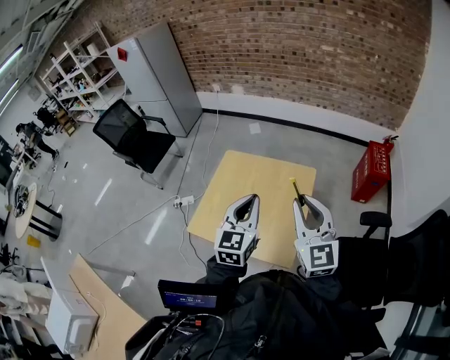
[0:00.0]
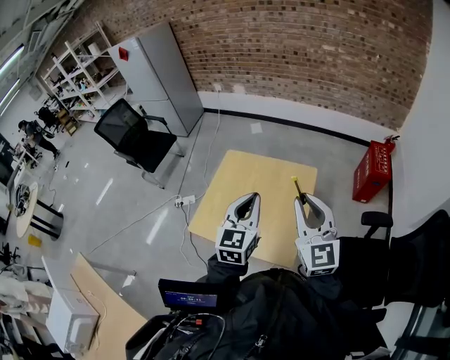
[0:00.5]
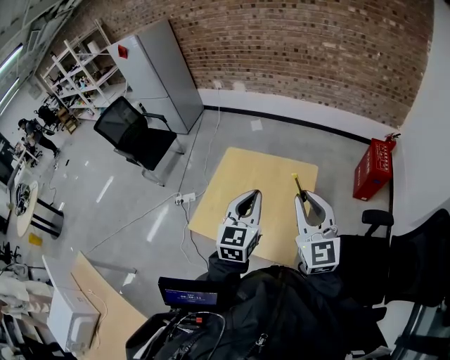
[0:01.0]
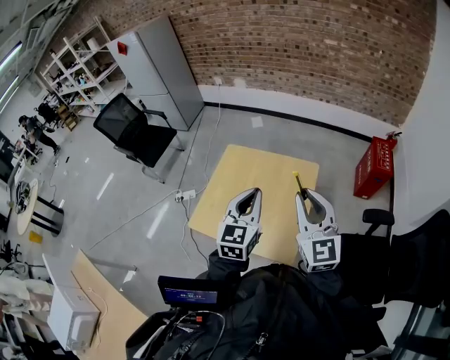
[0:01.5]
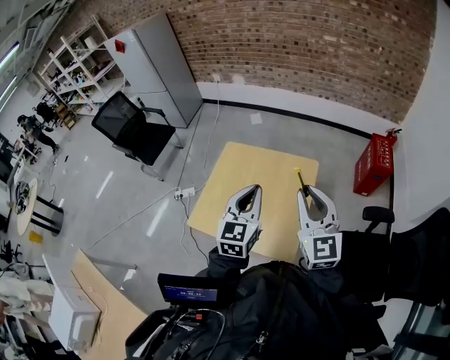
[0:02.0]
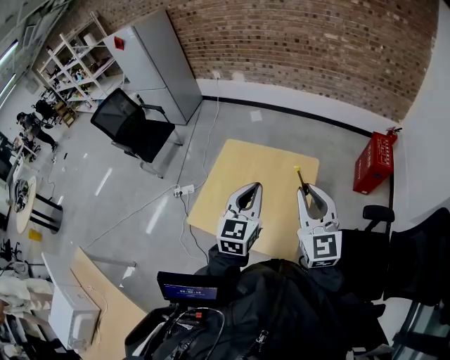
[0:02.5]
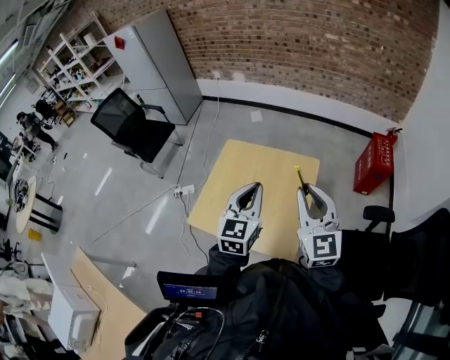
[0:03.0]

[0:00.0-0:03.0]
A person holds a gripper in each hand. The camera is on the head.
0:00.0 to 0:01.5: Neither gripper changes place.
0:01.5 to 0:03.0: The grippers move only a little.

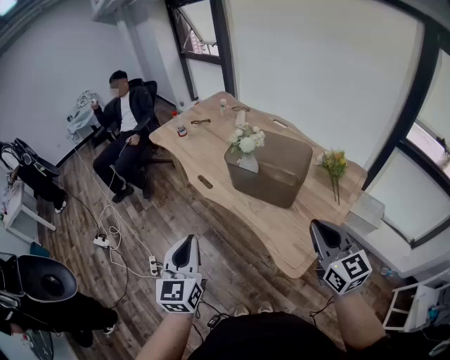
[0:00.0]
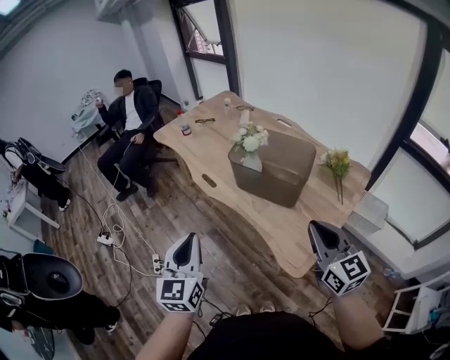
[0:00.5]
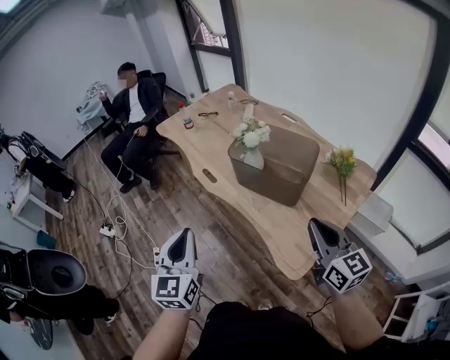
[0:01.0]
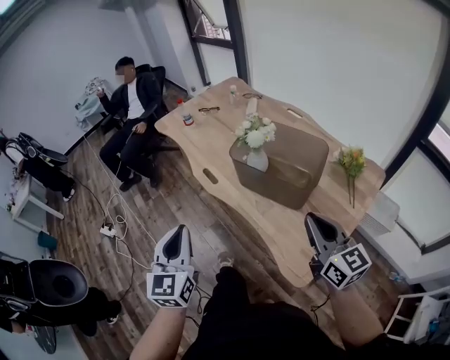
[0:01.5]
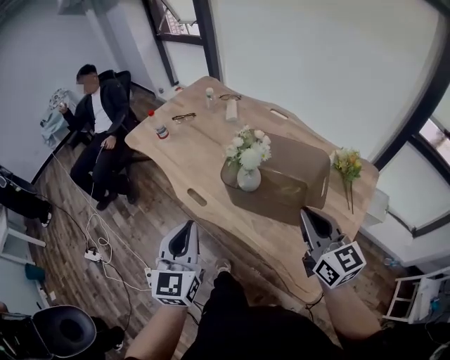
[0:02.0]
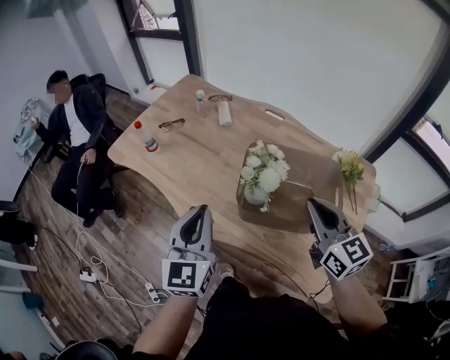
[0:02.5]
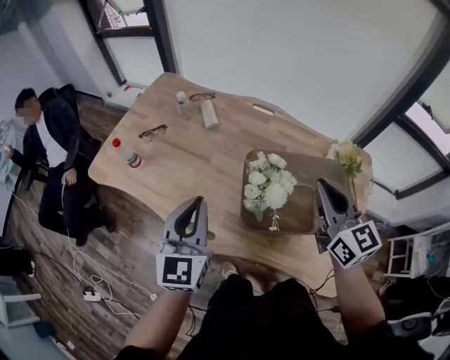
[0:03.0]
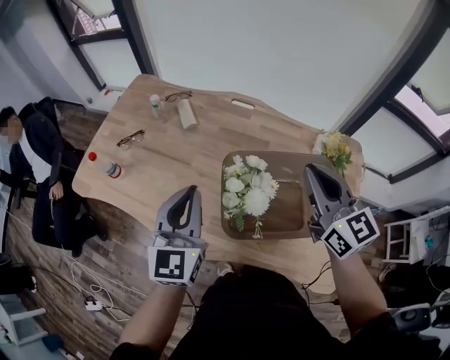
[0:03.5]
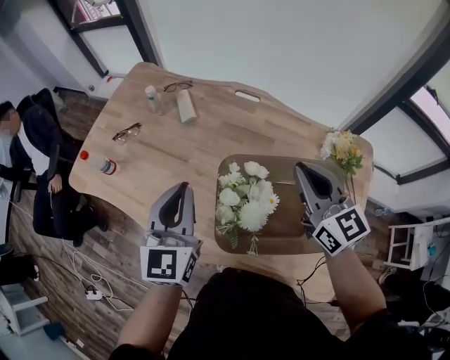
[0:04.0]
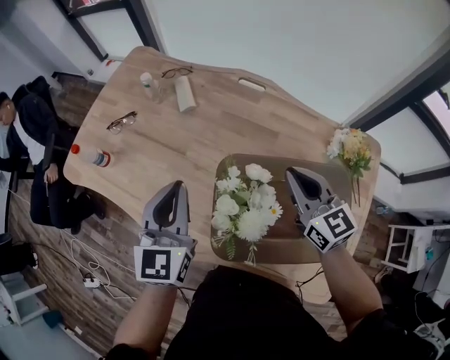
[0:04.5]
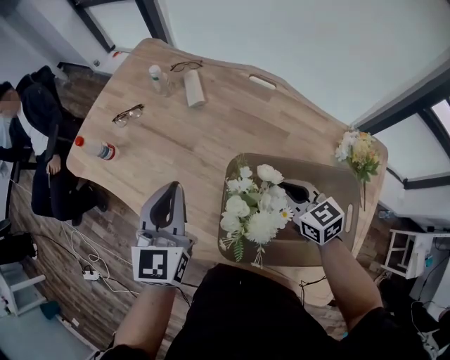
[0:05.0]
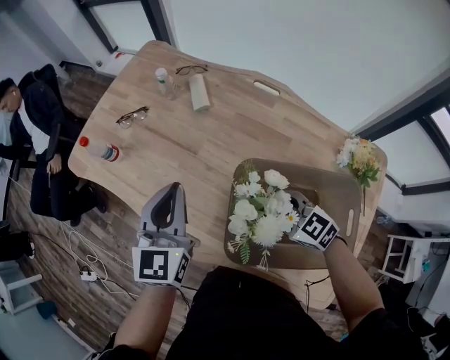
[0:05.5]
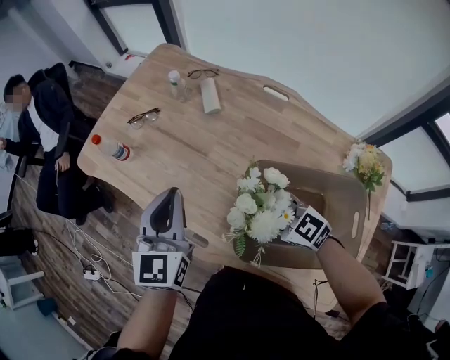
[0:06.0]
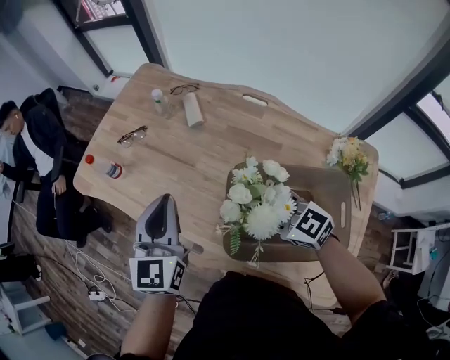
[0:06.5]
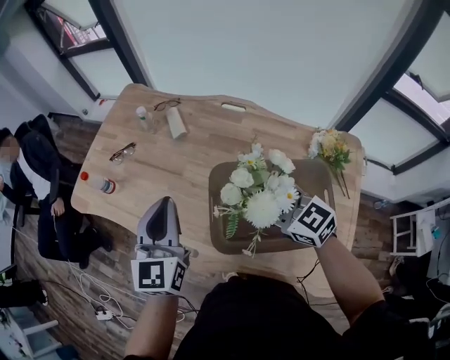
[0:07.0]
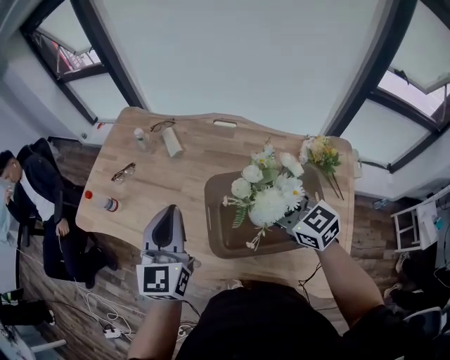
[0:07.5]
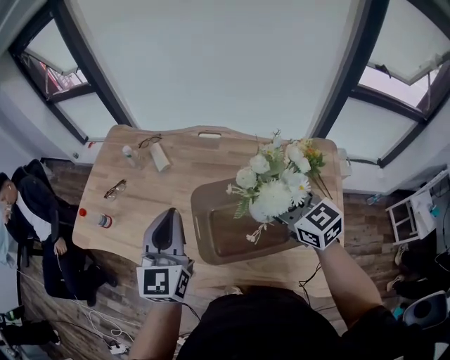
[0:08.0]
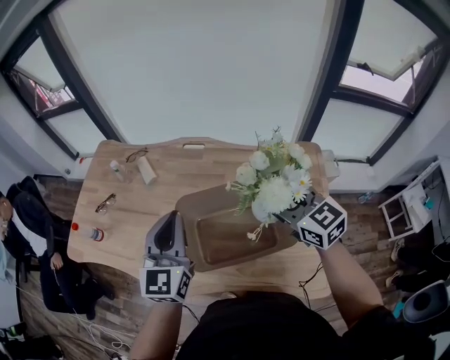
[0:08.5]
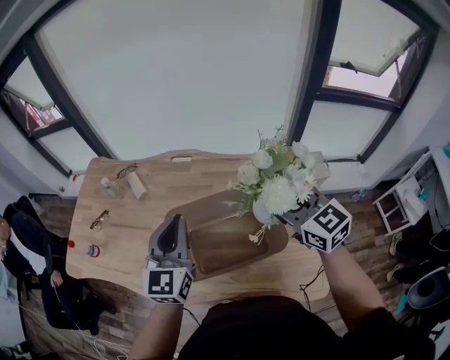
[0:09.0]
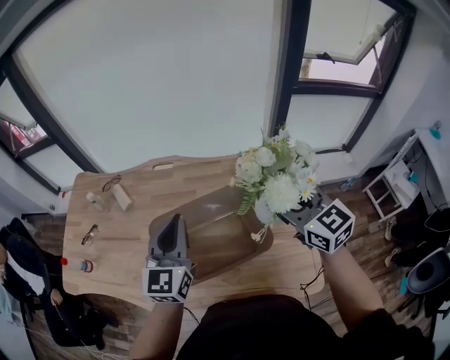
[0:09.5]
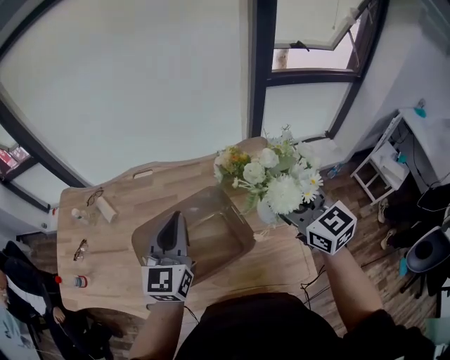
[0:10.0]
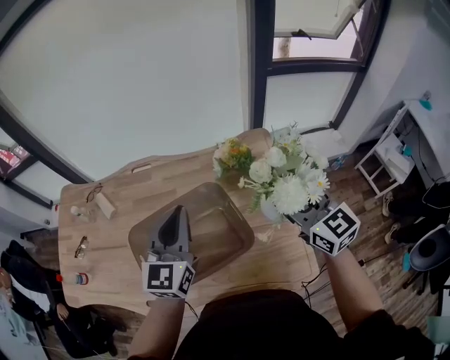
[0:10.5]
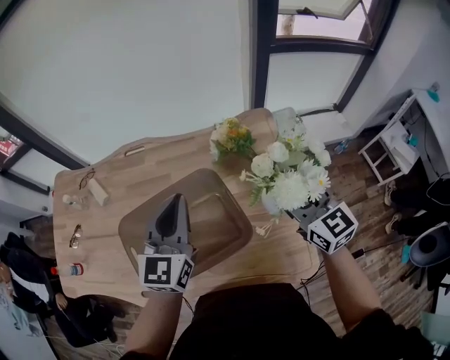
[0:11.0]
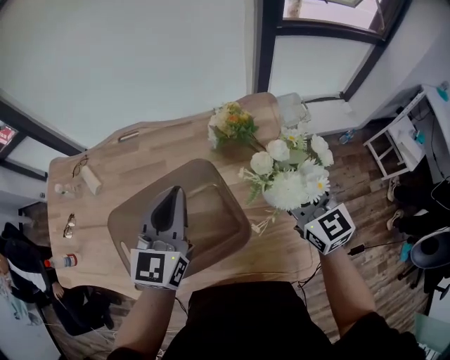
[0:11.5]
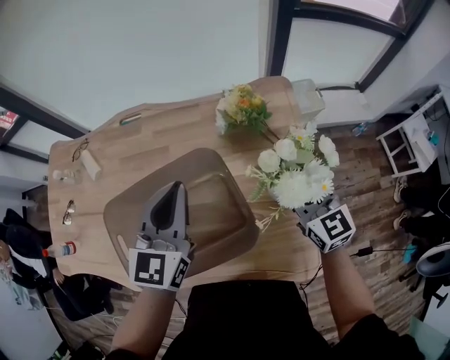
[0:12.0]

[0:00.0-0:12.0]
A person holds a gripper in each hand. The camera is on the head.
0:00.0 to 0:02.0: Both grippers move forward, about 20 cm.
0:02.0 to 0:04.0: The grippers both shift forward by approximately 30 cm.
0:04.0 to 0:06.0: The right gripper is displaced downward by approximately 15 cm, swivels some 50 degrees, and opens up. Meanwhile the left gripper shifts by approximately 5 cm.
0:06.0 to 0:08.0: The left gripper shifts by about 15 cm, and changes its angle by about 20 degrees; the right gripper moves upward, approximately 15 cm, and turns by some 40 degrees.
0:08.0 to 0:10.0: The grippers both shift to the right by approximately 20 cm. The left gripper changes its angle by some 20 degrees; the right gripper changes its angle by approximately 20 degrees.
0:10.0 to 0:12.0: The left gripper goes approximately 10 cm downward. The right gripper heads downward, covering some 20 cm.

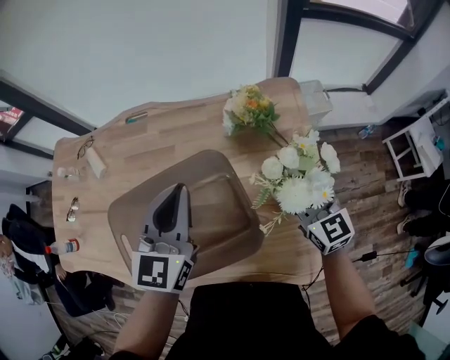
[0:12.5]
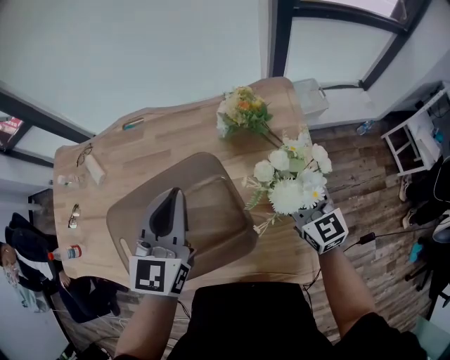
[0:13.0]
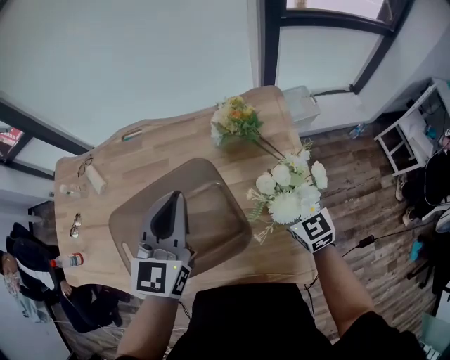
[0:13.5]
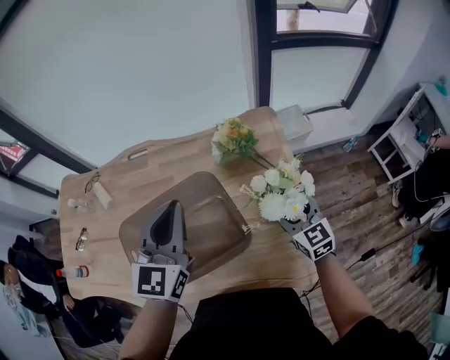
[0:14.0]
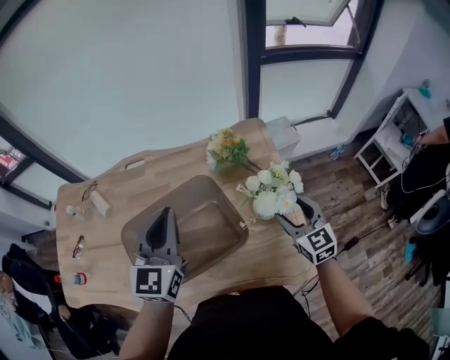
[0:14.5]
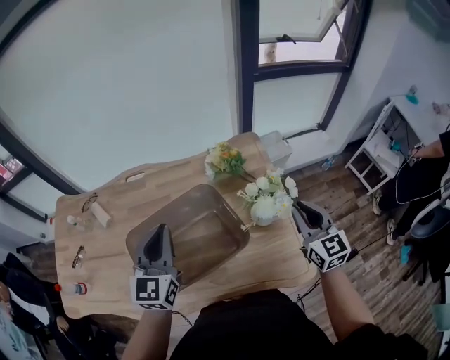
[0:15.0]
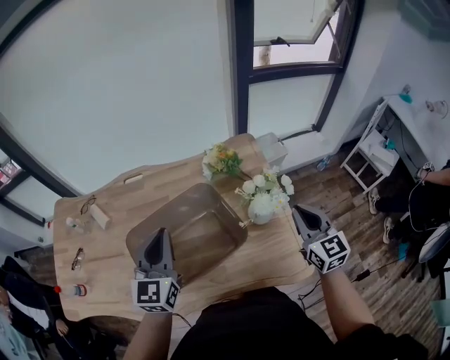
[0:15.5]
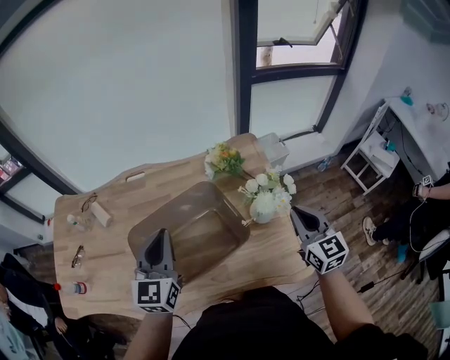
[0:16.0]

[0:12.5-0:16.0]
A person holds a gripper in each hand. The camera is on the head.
0:12.5 to 0:14.5: The left gripper is displaced upward by roughly 5 cm; the right gripper goes approximately 5 cm backward.
0:14.5 to 0:16.0: The right gripper moves upward, roughly 10 cm, and closes up. The left gripper moves to the left, about 5 cm.

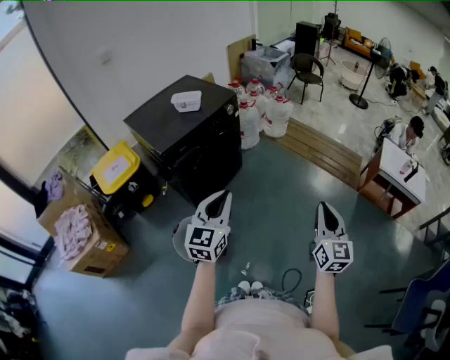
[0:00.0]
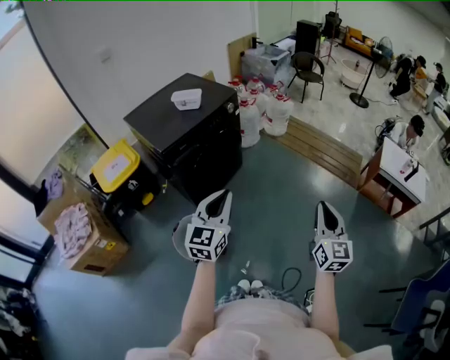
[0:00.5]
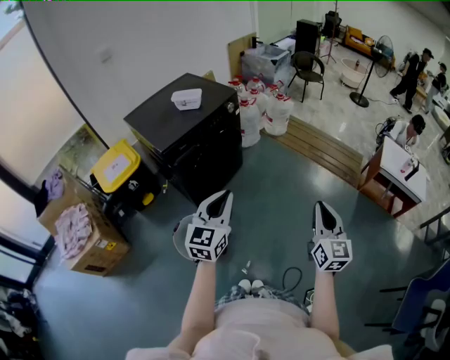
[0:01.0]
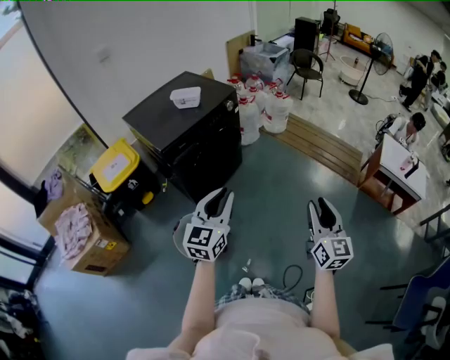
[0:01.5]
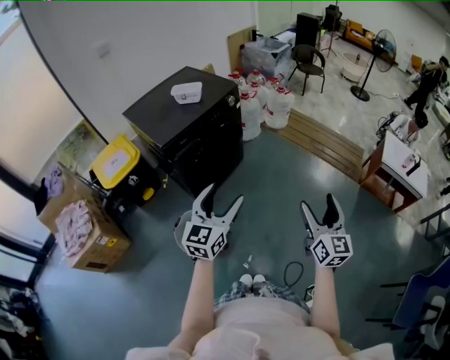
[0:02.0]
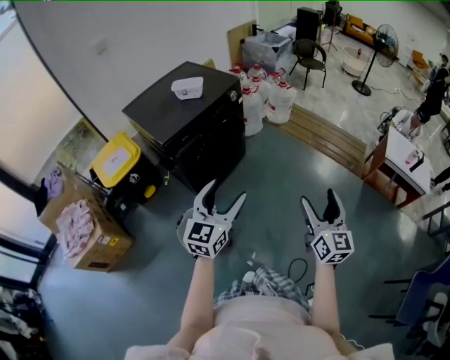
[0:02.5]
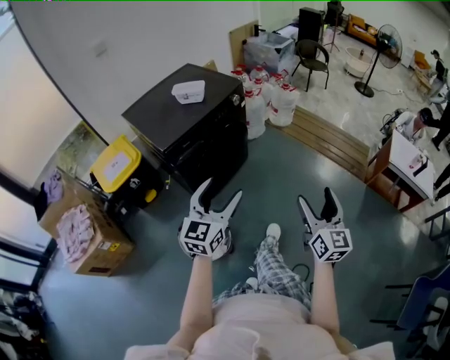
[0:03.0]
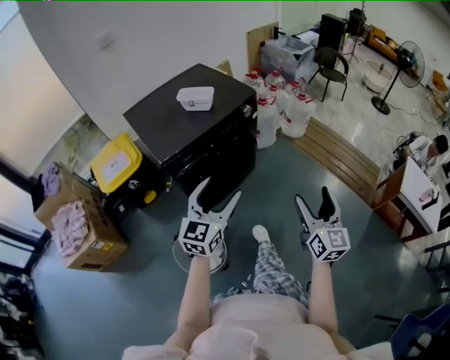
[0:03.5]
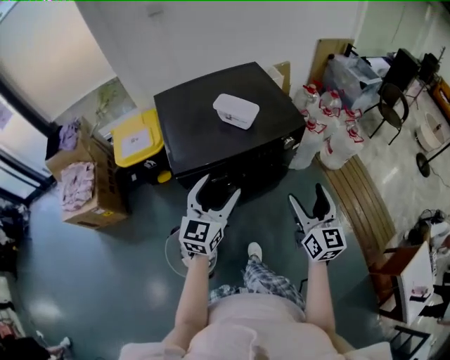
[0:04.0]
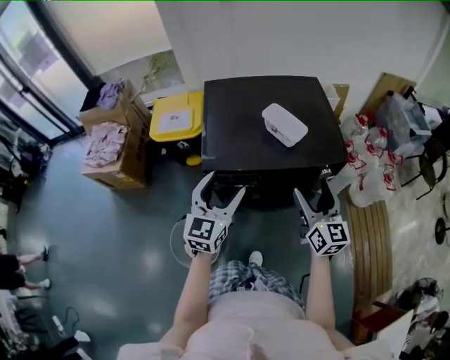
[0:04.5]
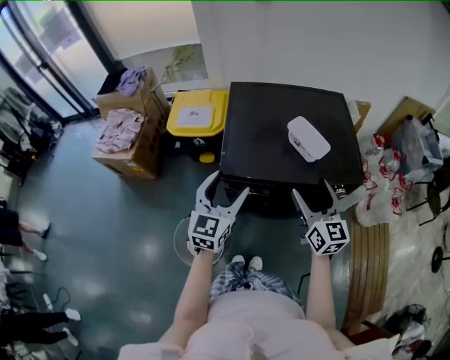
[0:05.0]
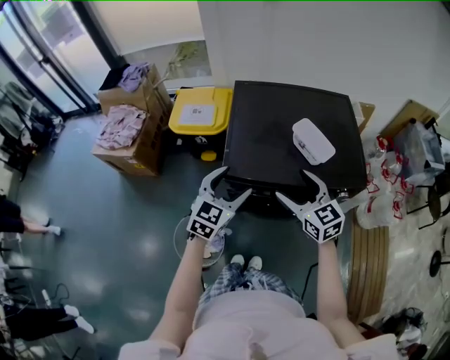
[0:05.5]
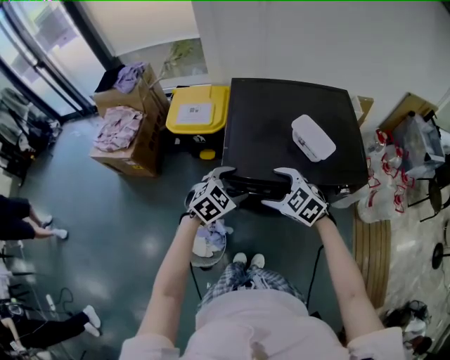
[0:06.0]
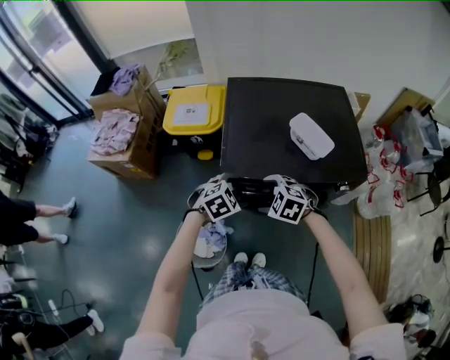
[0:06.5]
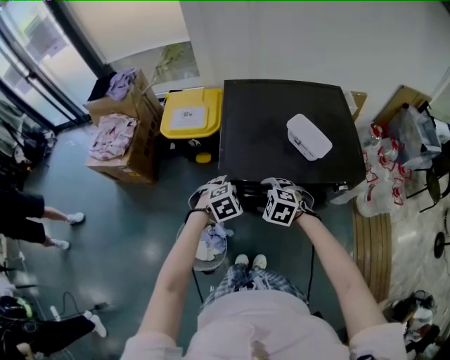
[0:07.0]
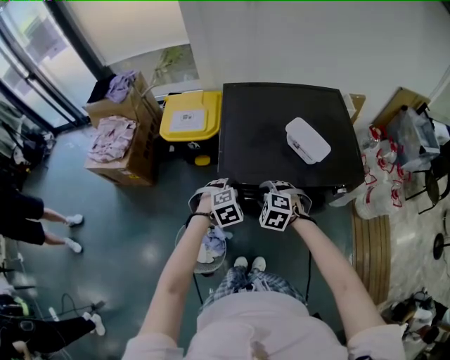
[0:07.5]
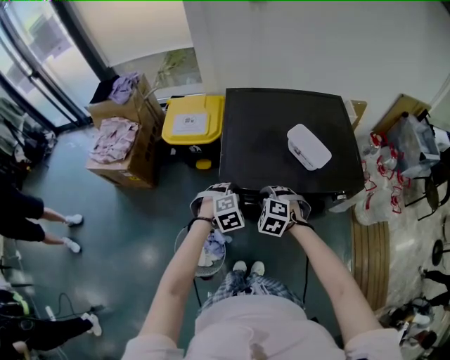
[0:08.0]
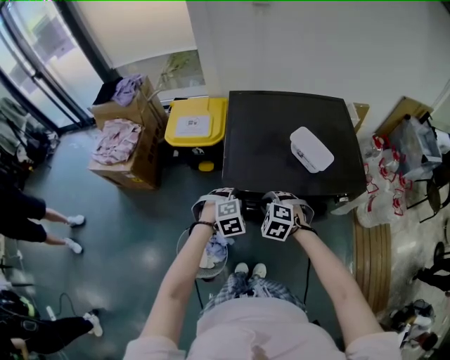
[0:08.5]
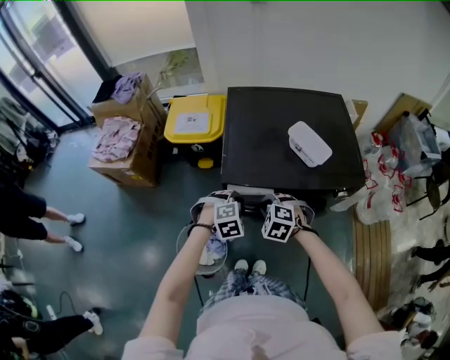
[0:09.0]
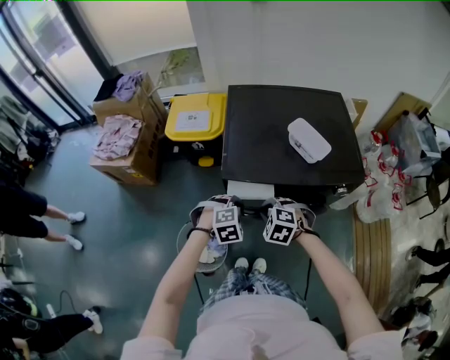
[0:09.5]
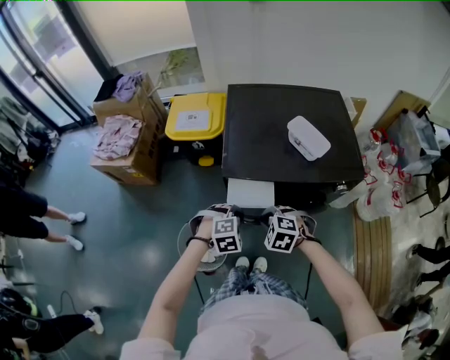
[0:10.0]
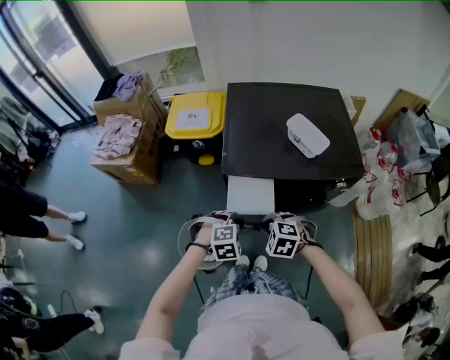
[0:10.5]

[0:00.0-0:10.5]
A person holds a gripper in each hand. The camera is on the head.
0:00.0 to 0:02.0: The left gripper opens up. The right gripper opens.
0:02.0 to 0:04.0: The left gripper shifts by some 40 cm, and swivels some 30 degrees. Meanwhile the right gripper ends up some 50 cm from where it was, and changes its angle by some 30 degrees.
0:04.0 to 0:06.5: The left gripper shifts roughly 15 cm downward, and angles its fingers downward, by some 50 degrees, while the right gripper ends up approximately 35 cm from where it was, and tilts its fingers roughly 50 degrees downward.
0:06.5 to 0:08.5: The right gripper closes. The left gripper swivels some 20 degrees, and closes its fingers.
0:08.5 to 0:10.5: The grippers both shift backward by roughly 15 cm.
